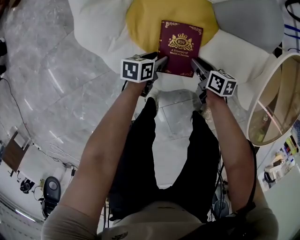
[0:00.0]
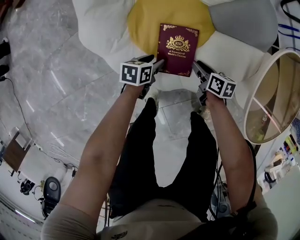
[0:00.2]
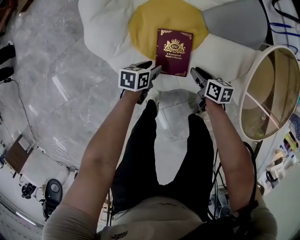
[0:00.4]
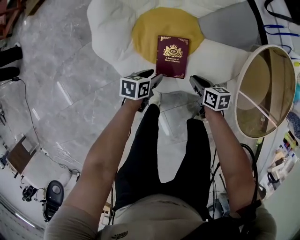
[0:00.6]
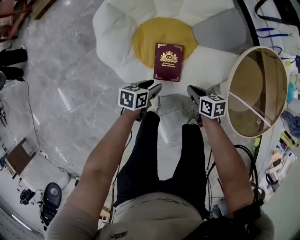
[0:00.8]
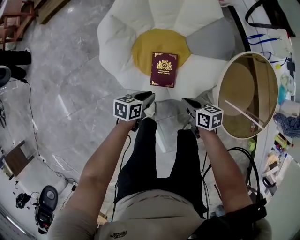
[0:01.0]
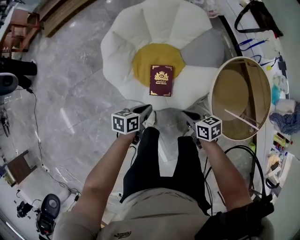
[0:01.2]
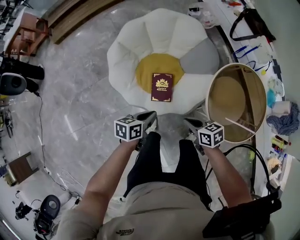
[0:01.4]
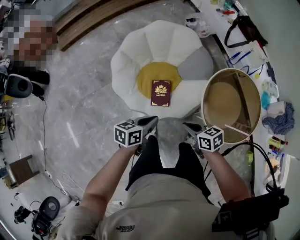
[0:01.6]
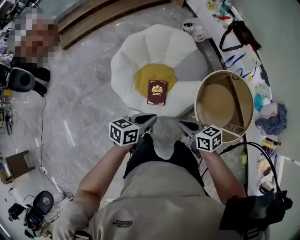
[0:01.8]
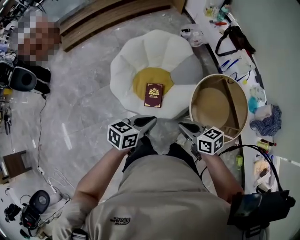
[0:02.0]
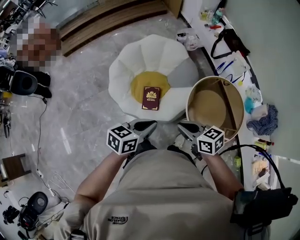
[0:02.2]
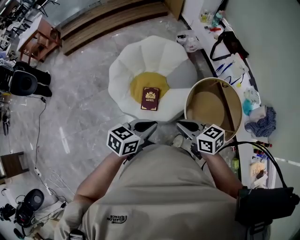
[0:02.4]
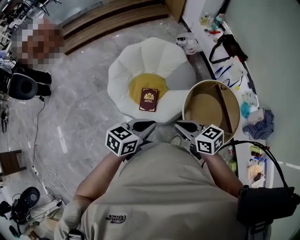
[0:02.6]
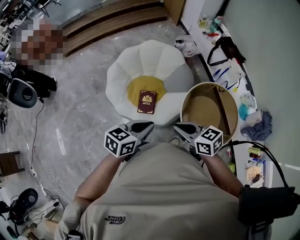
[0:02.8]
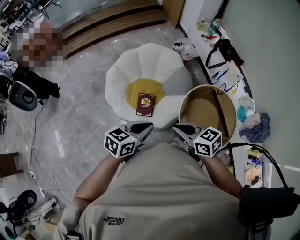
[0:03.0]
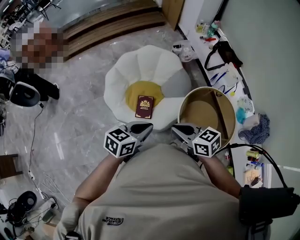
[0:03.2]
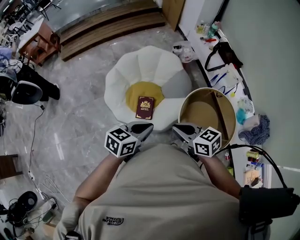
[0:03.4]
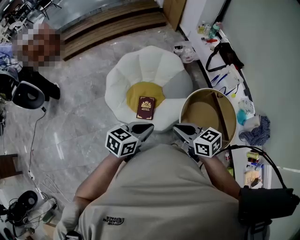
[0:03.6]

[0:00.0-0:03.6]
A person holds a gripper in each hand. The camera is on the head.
0:00.0 to 0:01.8: Both grippers move upward, some 60 cm. The right gripper changes its angle by some 30 degrees, and closes its fingers; the left gripper turns by about 20 degrees, and closes up.
0:01.8 to 0:03.6: The right gripper moves upward, some 15 cm. Meanwhile the left gripper shifts roughly 10 cm upward and to the right.

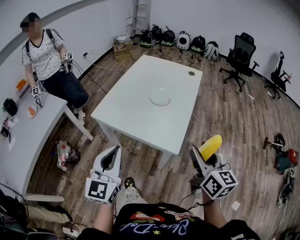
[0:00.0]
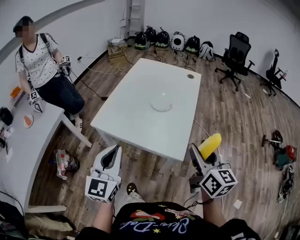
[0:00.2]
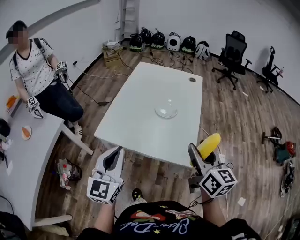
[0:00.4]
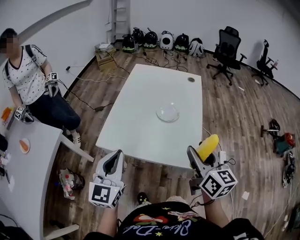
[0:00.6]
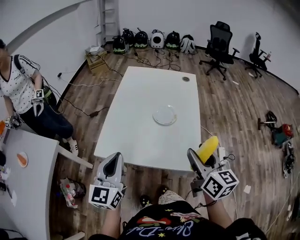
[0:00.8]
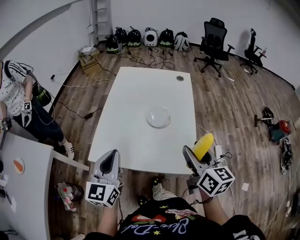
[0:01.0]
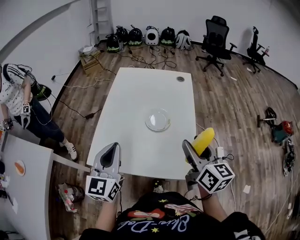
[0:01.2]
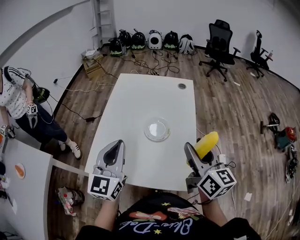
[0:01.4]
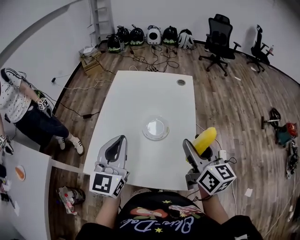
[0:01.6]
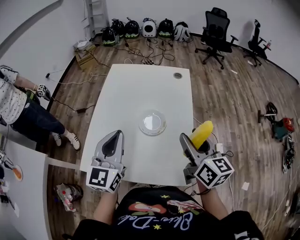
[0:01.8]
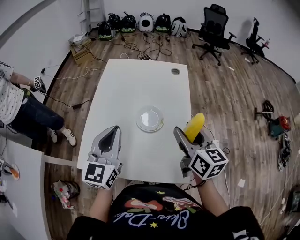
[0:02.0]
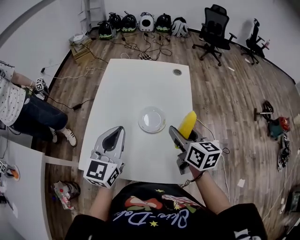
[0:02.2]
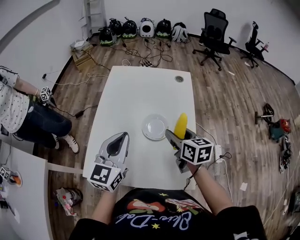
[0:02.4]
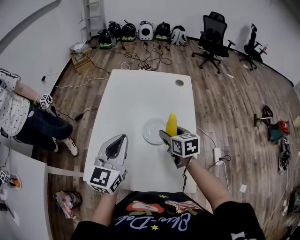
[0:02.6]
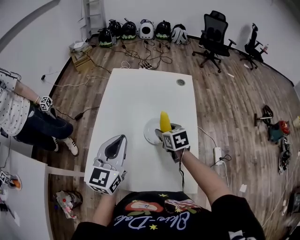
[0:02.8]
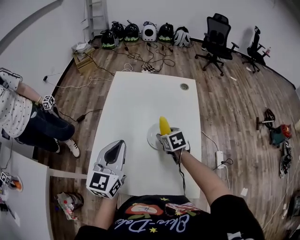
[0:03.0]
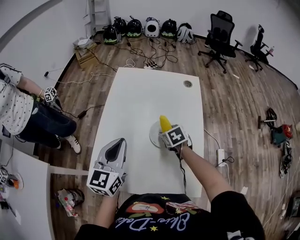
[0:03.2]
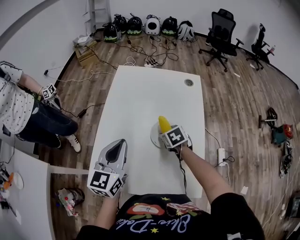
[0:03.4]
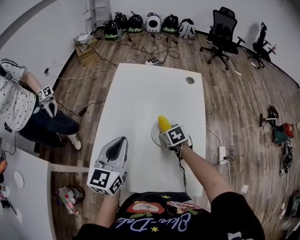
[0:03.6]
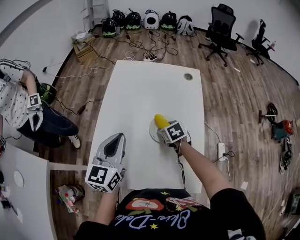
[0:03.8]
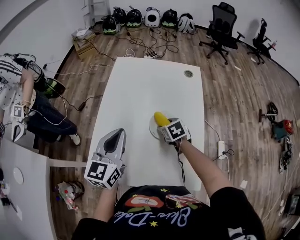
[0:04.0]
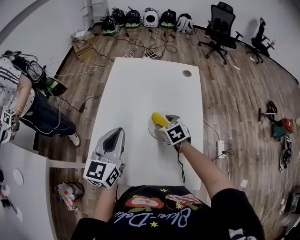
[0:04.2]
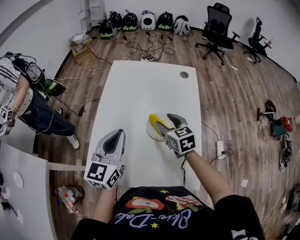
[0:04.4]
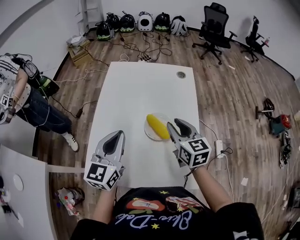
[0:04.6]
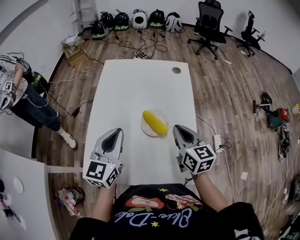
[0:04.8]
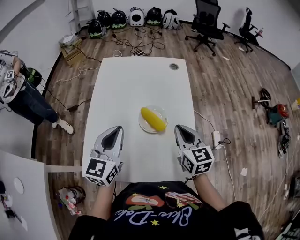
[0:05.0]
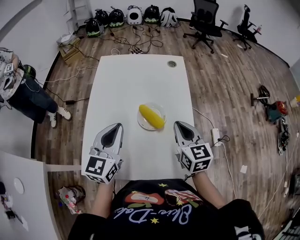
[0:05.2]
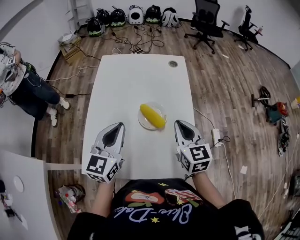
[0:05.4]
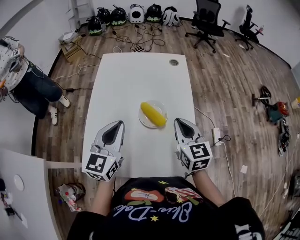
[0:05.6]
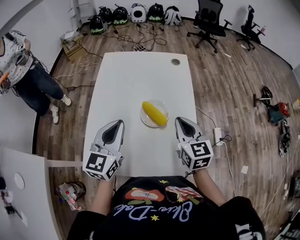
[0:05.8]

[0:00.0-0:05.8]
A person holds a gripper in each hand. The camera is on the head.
0:00.0 to 0:01.4: The right gripper travels forward and to the left by about 25 cm. The left gripper is displaced forward by some 30 cm.
0:01.4 to 0:02.8: The left gripper goes approximately 10 cm forward. Meanwhile the right gripper shifts some 30 cm downward, forward and to the left, and angles its fingers downward, by roughly 40 degrees.
0:02.8 to 0:04.4: The right gripper travels downward and back again, roughly 10 cm each way.
0:04.4 to 0:05.8: The right gripper goes roughly 15 cm backward, to the right and upward, and closes its fingers.

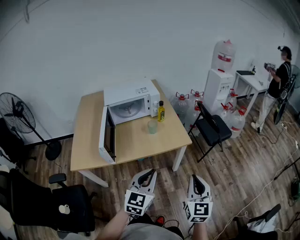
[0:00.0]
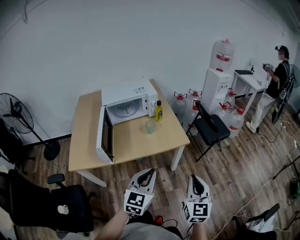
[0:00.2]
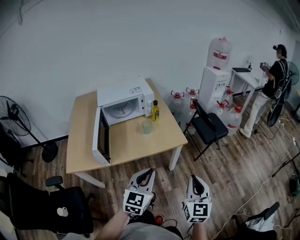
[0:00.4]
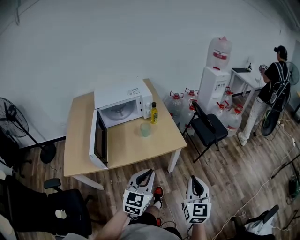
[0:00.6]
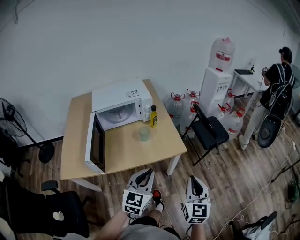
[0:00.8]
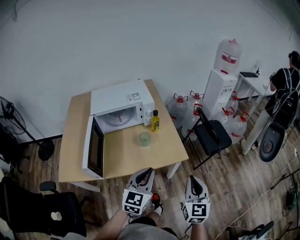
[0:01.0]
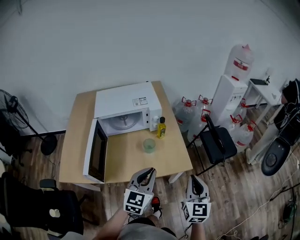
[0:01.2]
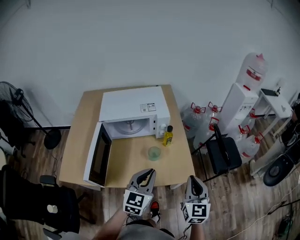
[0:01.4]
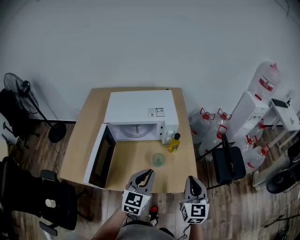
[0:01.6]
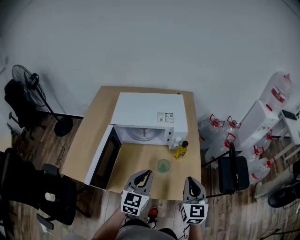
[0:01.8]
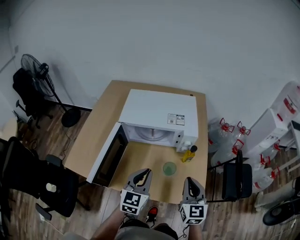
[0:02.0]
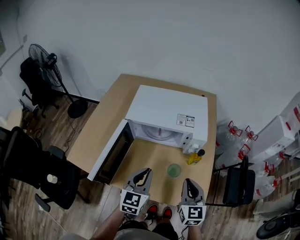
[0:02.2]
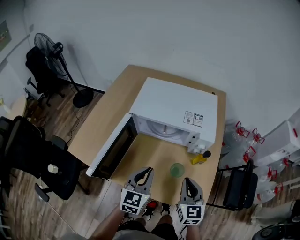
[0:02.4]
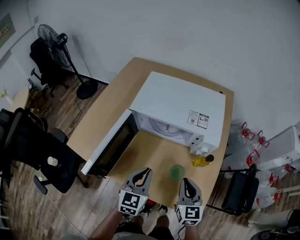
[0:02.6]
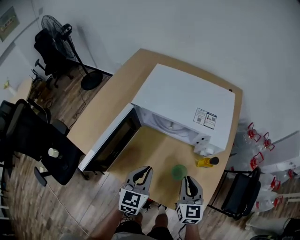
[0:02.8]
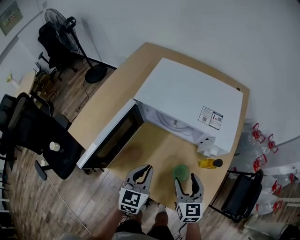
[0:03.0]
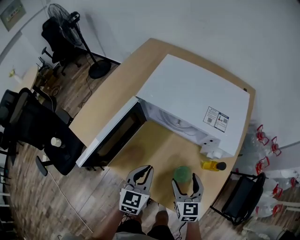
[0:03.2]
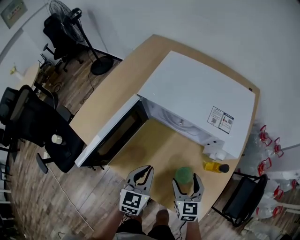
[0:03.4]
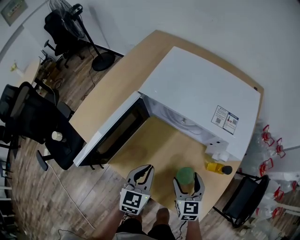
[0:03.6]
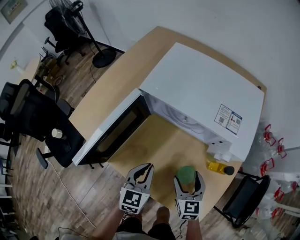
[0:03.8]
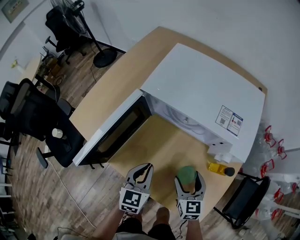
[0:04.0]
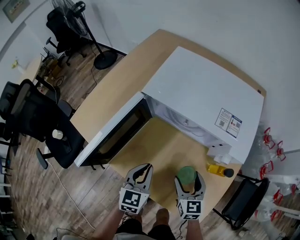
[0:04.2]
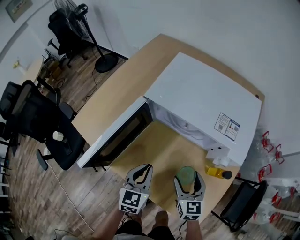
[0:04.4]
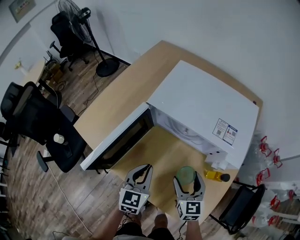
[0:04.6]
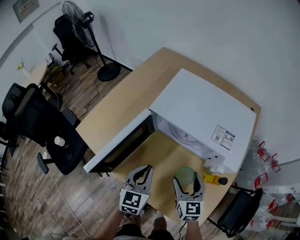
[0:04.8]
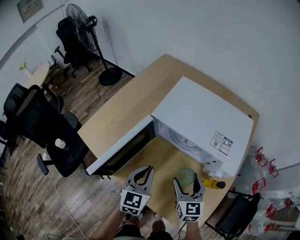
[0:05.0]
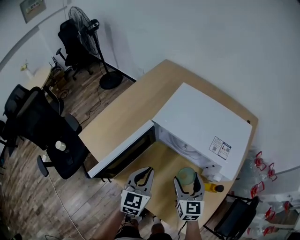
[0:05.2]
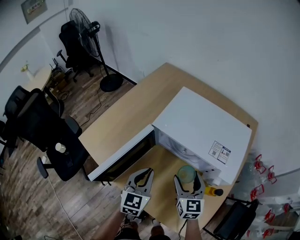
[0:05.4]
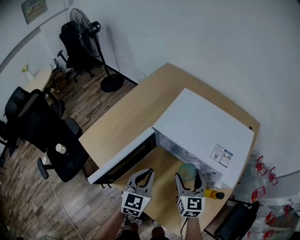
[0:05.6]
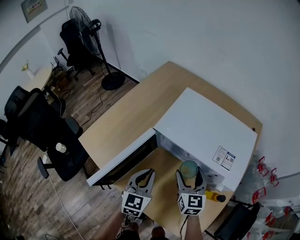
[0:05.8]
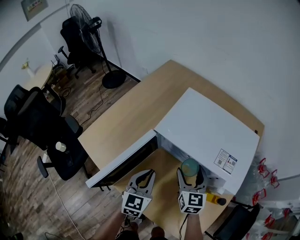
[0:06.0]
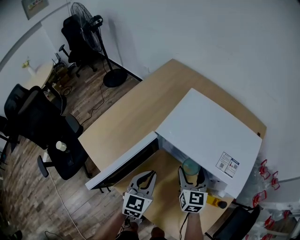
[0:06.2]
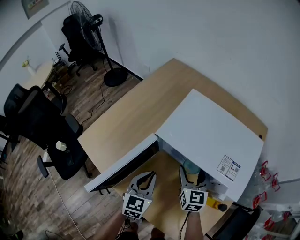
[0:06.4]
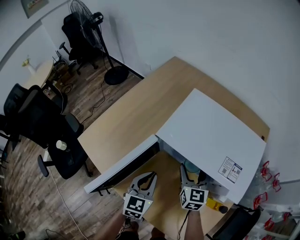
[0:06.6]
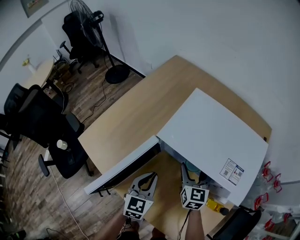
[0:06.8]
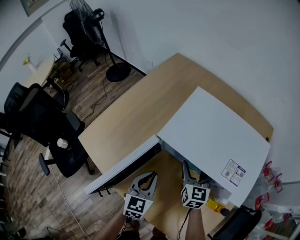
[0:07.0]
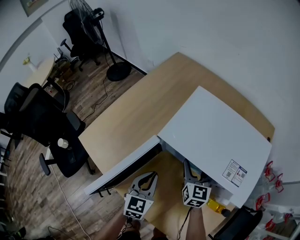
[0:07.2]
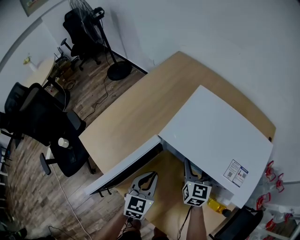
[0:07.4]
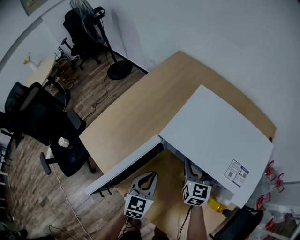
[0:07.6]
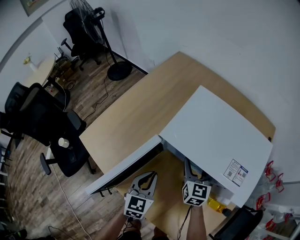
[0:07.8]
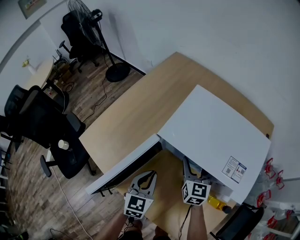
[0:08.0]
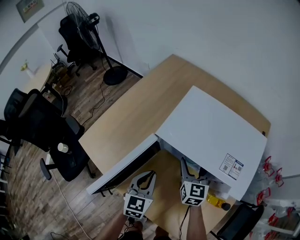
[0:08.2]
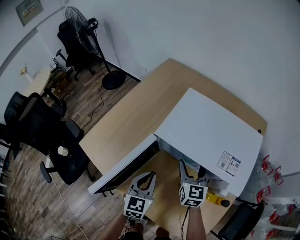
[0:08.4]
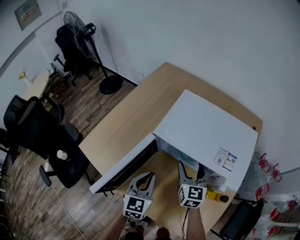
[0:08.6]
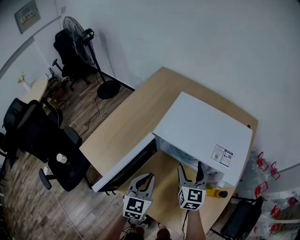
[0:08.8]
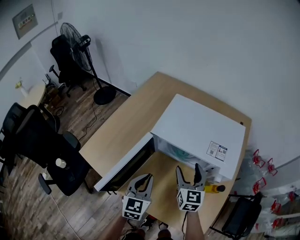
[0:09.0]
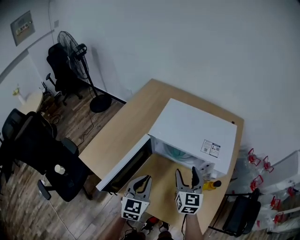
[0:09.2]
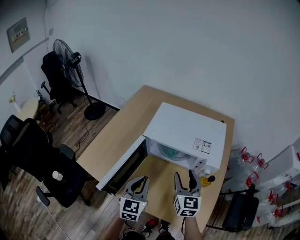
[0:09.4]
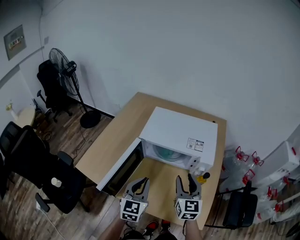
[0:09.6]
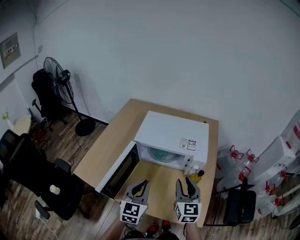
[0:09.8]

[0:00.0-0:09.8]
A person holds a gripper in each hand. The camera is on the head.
0:00.0 to 0:01.4: Both grippers move forward, roughly 30 cm.
0:01.4 to 0:02.8: The right gripper shifts by about 30 cm, and swivels roughly 40 degrees. Meanwhile the left gripper moves approximately 20 cm, and turns by some 40 degrees.
0:02.8 to 0:04.2: The grippers both shift downward by approximately 5 cm. The right gripper opens.
0:04.2 to 0:05.6: The right gripper is displaced forward and upward by approximately 15 cm. The left gripper travels upward and forward by roughly 10 cm.
0:05.6 to 0:07.0: The right gripper goes roughly 10 cm forward; the left gripper is displaced downward by approximately 5 cm.
0:07.0 to 0:08.4: There are only small adjustments of the grippers.
0:08.4 to 0:09.8: The left gripper moves upward and backward, about 20 cm, and turns by roughly 20 degrees; the right gripper travels backward and upward by roughly 25 cm, and closes up.

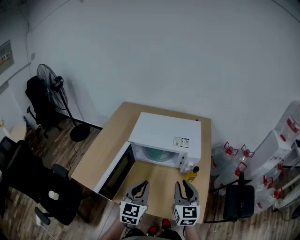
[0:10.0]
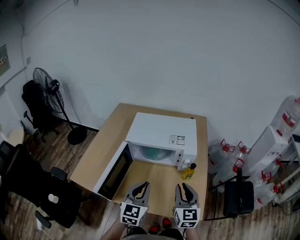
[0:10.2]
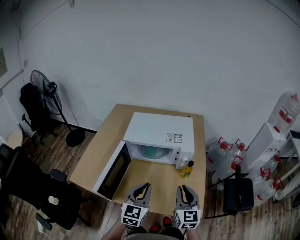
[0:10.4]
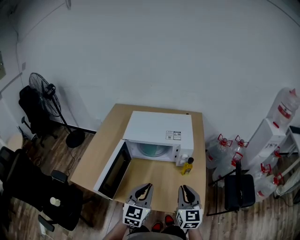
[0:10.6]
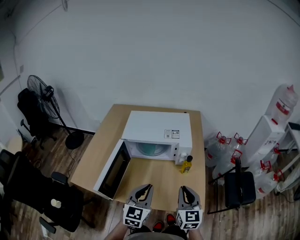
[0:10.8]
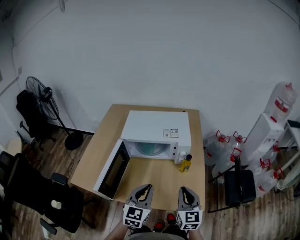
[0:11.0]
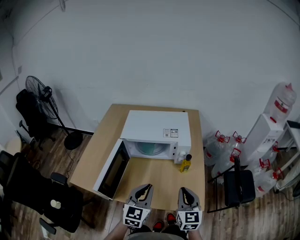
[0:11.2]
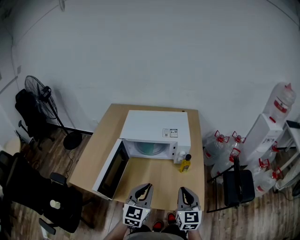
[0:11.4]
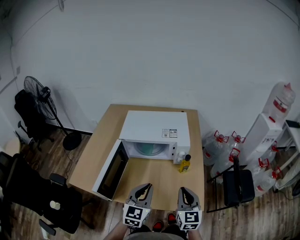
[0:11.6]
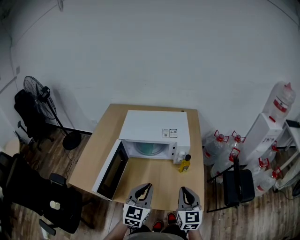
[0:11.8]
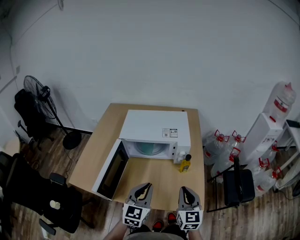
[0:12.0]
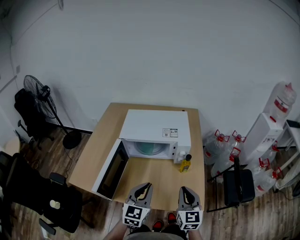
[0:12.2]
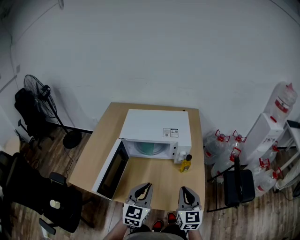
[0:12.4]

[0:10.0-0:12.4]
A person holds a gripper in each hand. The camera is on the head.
0:10.0 to 0:11.2: The right gripper heads backward, covering some 10 cm. The left gripper moves backward, about 5 cm.
0:11.2 to 0:12.4: Both grippers stay about where they are.

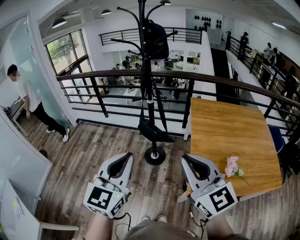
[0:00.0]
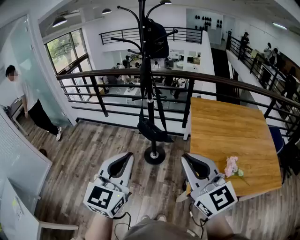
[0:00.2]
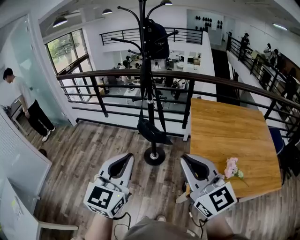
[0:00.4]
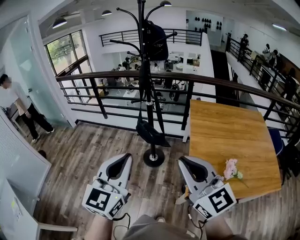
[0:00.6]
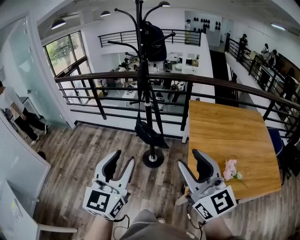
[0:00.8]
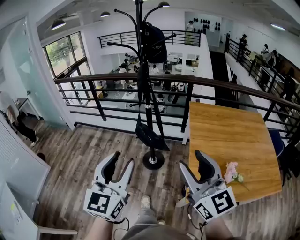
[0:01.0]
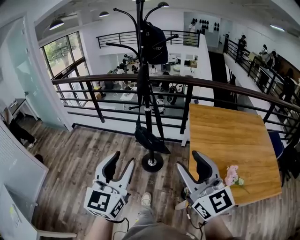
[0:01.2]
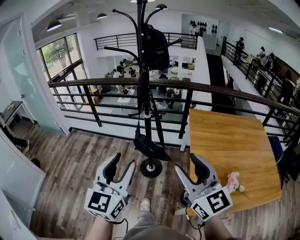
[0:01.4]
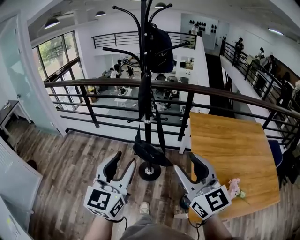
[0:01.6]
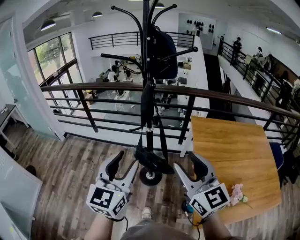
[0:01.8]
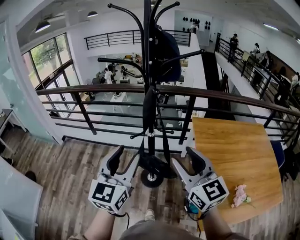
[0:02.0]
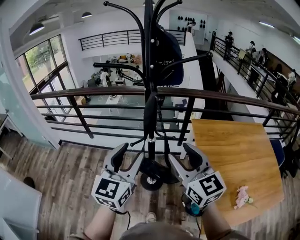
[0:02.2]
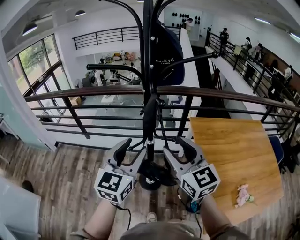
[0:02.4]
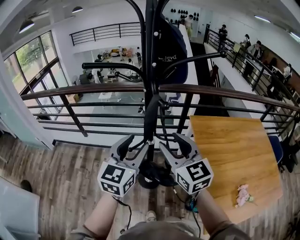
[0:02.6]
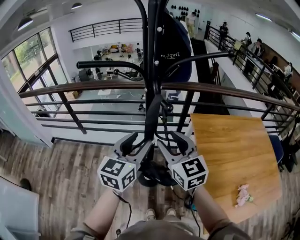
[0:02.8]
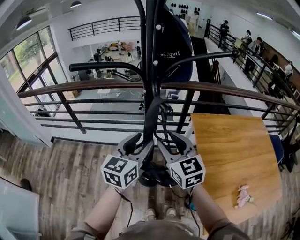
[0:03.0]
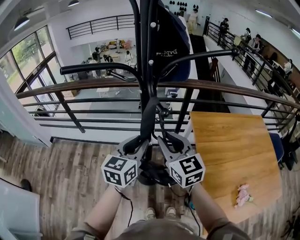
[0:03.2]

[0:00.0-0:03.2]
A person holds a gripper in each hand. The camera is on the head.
0:00.0 to 0:01.6: The grippers both shift forward by about 20 cm. The left gripper opens; the right gripper opens up.
0:01.6 to 0:03.2: Both grippers travel together forward, about 35 cm. The right gripper closes its fingers. The left gripper rotates roughly 30 degrees.
